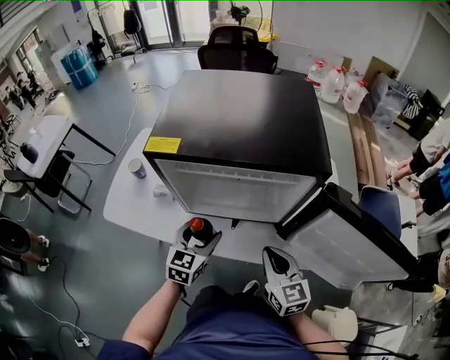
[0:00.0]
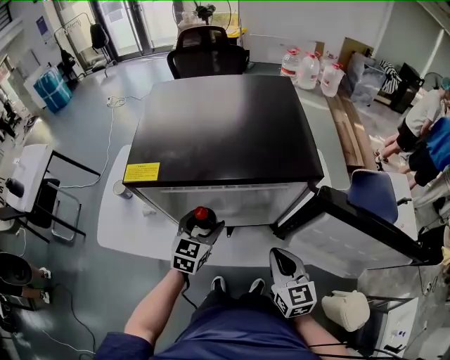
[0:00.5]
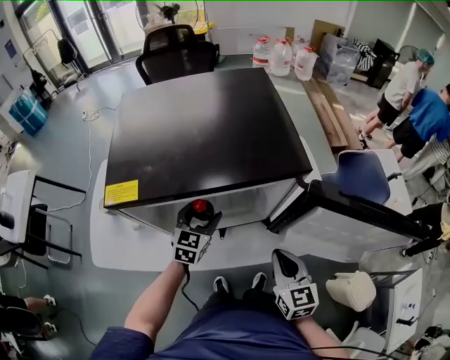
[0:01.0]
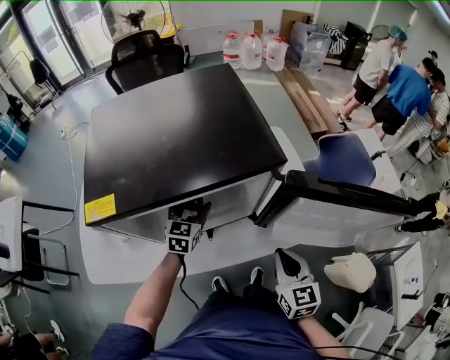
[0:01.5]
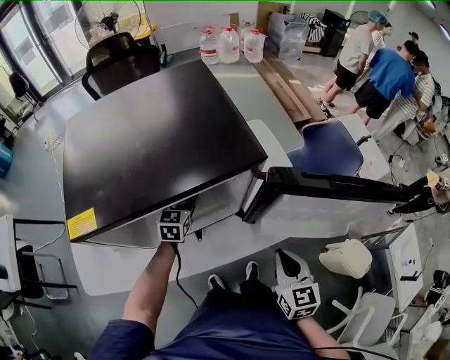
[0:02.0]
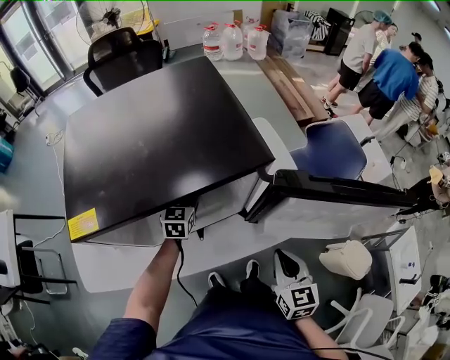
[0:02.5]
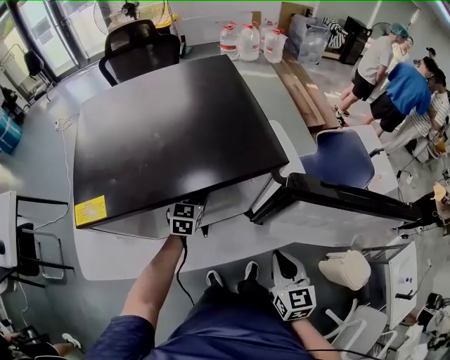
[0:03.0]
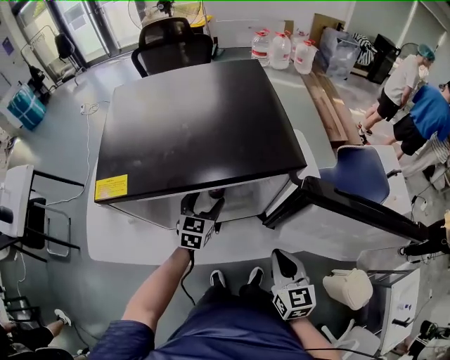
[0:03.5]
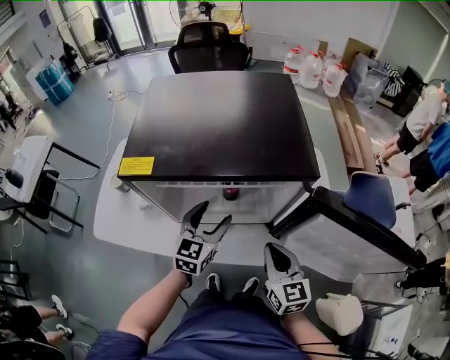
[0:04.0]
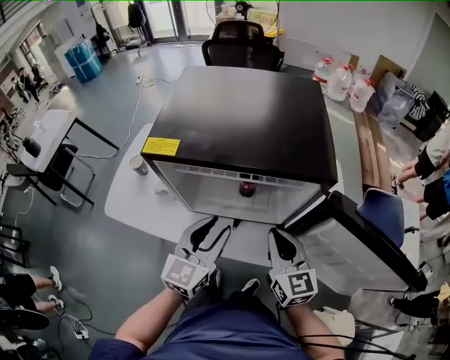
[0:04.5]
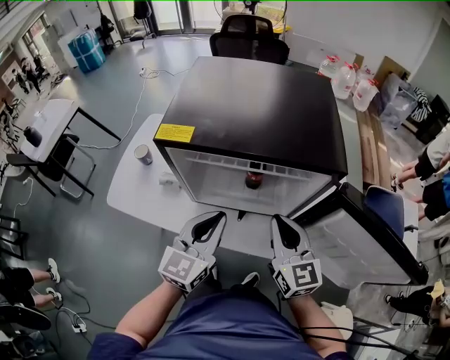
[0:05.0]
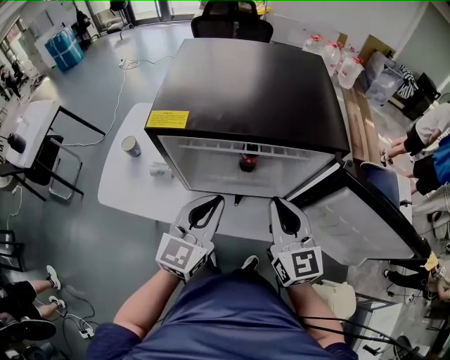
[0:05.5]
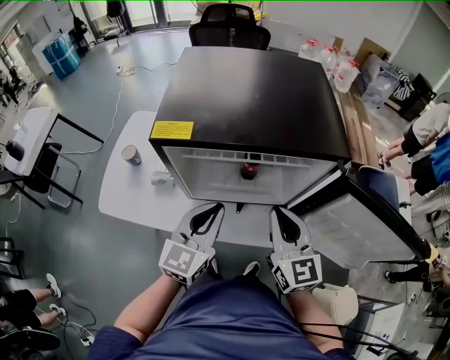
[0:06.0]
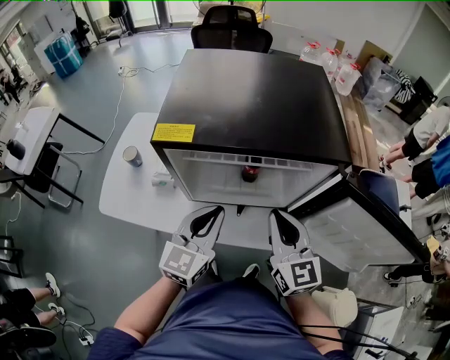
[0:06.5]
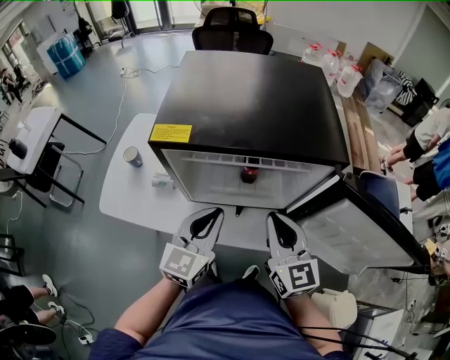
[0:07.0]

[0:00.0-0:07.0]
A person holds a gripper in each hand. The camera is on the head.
0:00.0 to 0:02.0: The left gripper ends up roughly 25 cm from where it was. Meanwhile the right gripper moves approximately 10 cm, and changes its angle by some 40 degrees.
0:02.0 to 0:03.5: The left gripper moves backward, some 5 cm. Meanwhile the right gripper changes place by roughly 5 cm.
0:03.5 to 0:05.0: The right gripper heads upward, to the left and forward, covering about 15 cm, and changes its angle by approximately 30 degrees; the left gripper heads upward and backward, covering roughly 25 cm, turns by roughly 20 degrees, and closes.
0:05.0 to 0:07.0: The grippers move only a little.

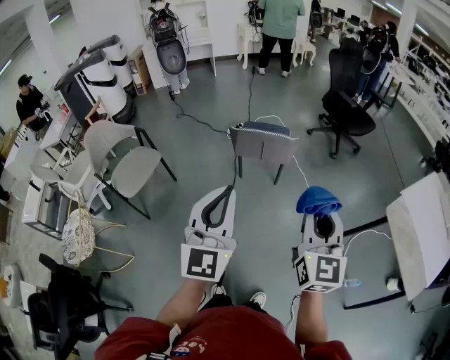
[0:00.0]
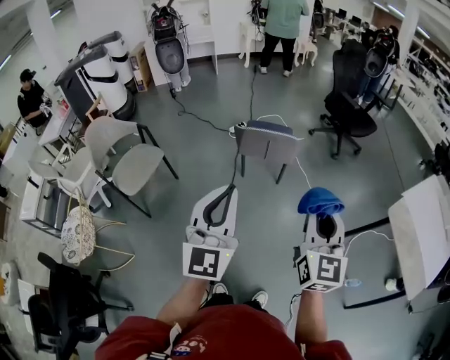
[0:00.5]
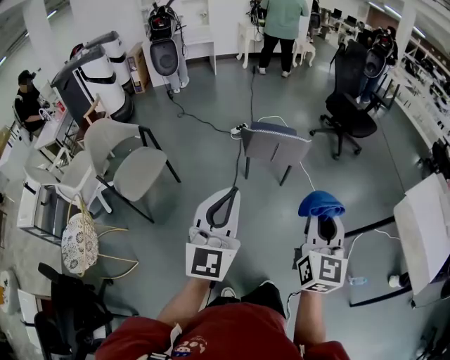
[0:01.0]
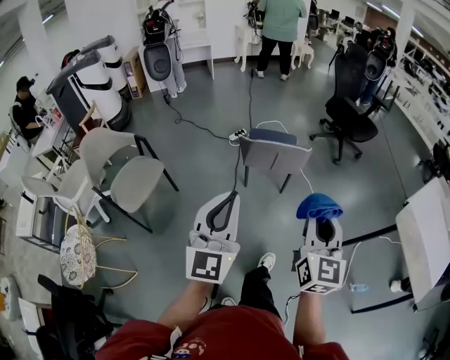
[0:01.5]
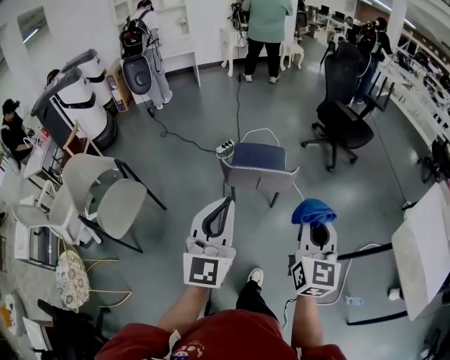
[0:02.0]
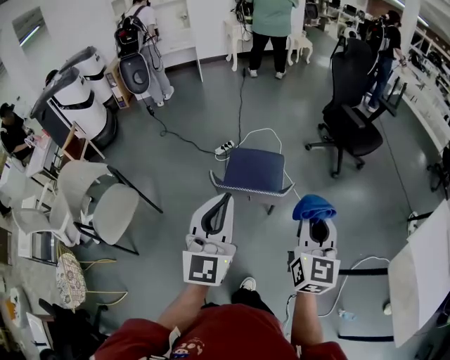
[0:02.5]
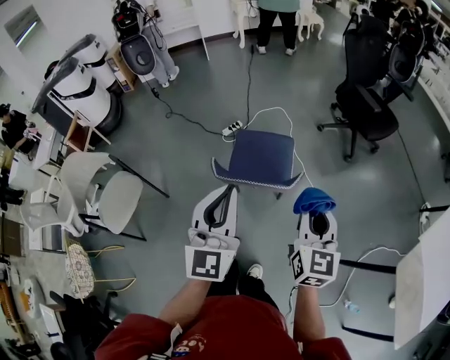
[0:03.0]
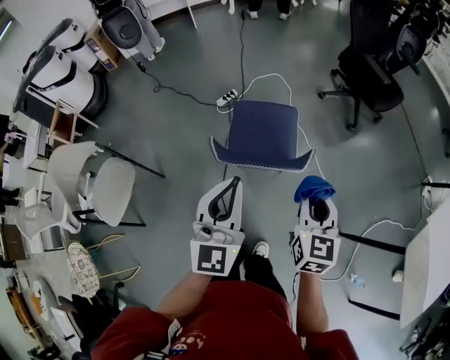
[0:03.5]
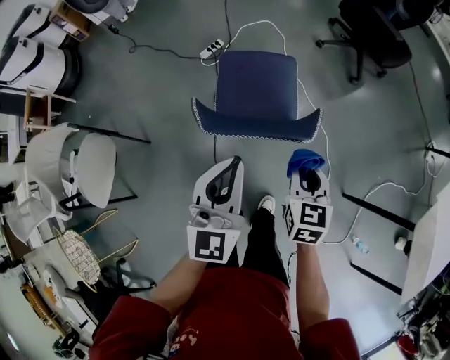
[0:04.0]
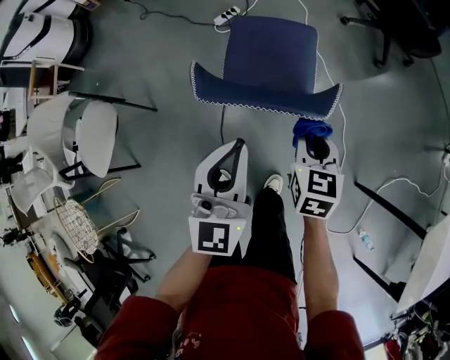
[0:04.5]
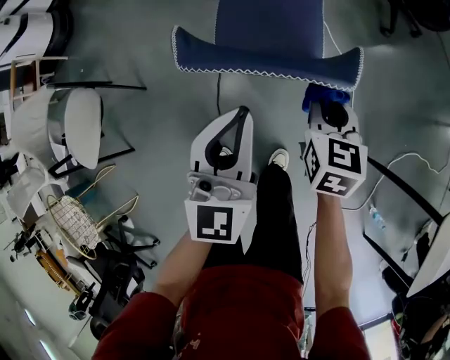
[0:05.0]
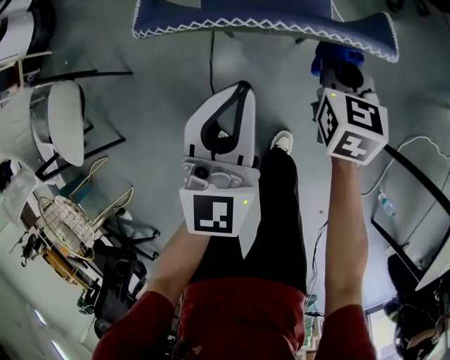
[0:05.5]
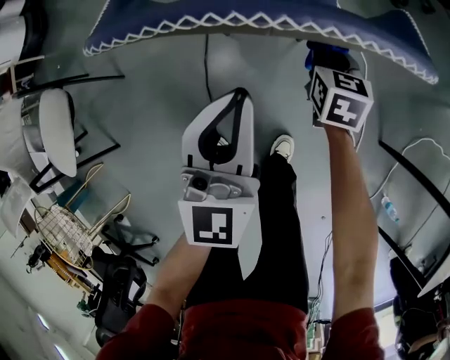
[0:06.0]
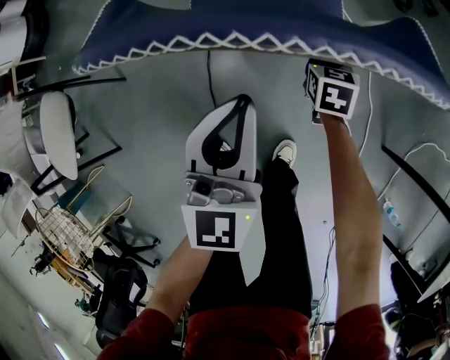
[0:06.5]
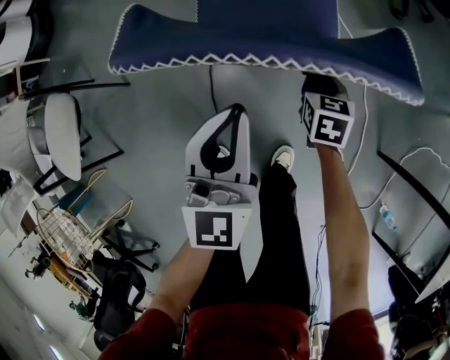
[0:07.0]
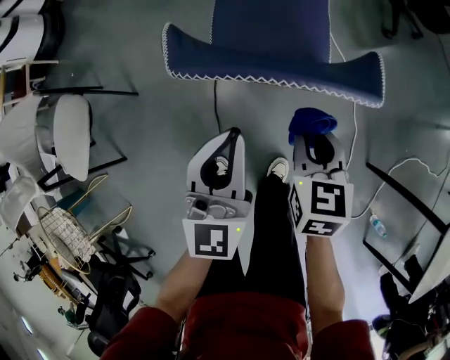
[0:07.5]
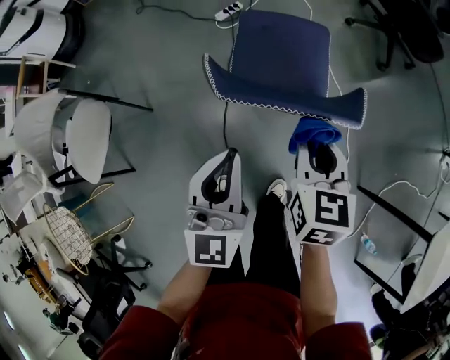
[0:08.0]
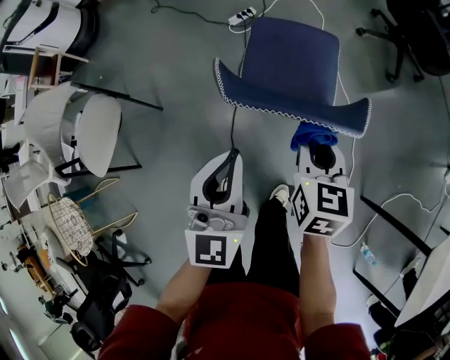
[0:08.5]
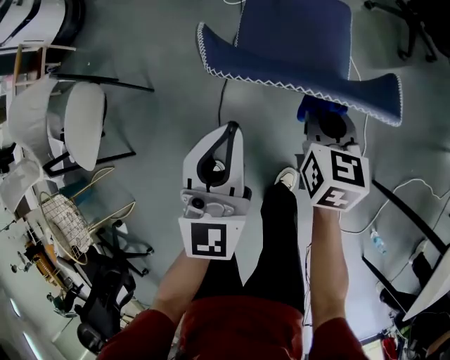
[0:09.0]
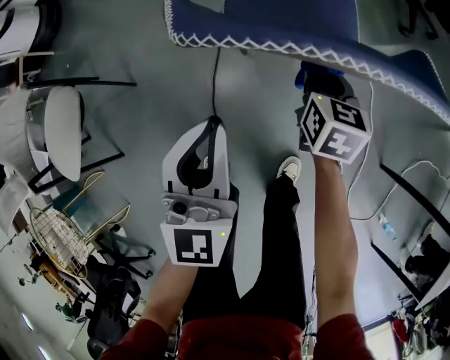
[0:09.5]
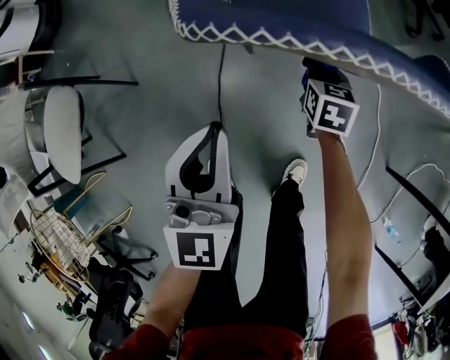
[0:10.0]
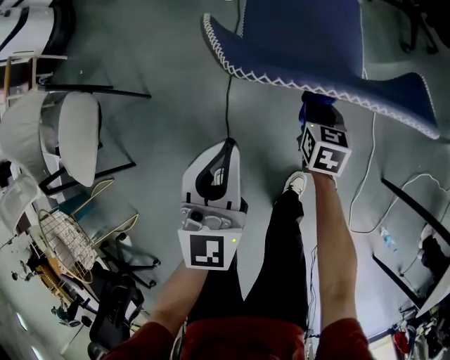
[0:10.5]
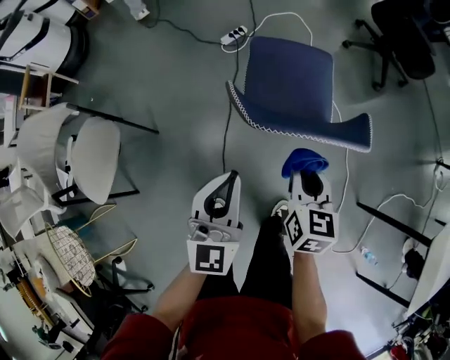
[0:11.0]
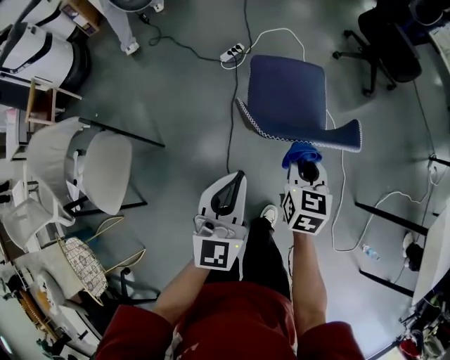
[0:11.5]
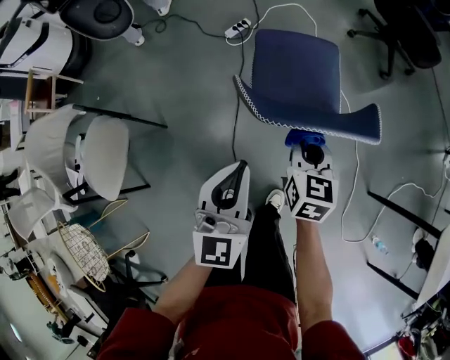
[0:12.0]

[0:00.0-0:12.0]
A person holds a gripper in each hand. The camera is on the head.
0:00.0 to 0:02.0: The grippers both shift forward by roughly 20 cm.
0:02.0 to 0:04.0: The left gripper heads forward and downward, covering approximately 30 cm. The right gripper travels downward and forward by about 40 cm, and tilts its fingers roughly 30 degrees downward.
0:04.0 to 0:06.0: The grippers both shift downward by some 30 cm.
0:06.0 to 0:08.0: The right gripper moves upward, approximately 30 cm. Meanwhile the left gripper moves upward and to the left, about 15 cm.
0:08.0 to 0:10.0: The right gripper goes about 35 cm downward; the left gripper moves downward, approximately 15 cm.
0:10.0 to 0:12.0: The left gripper is displaced upward by about 15 cm, while the right gripper heads upward, covering roughly 30 cm.

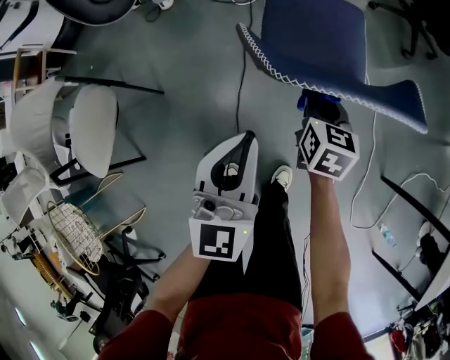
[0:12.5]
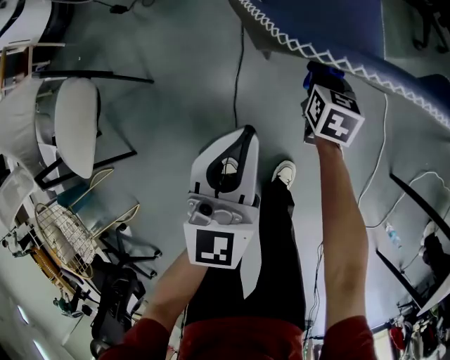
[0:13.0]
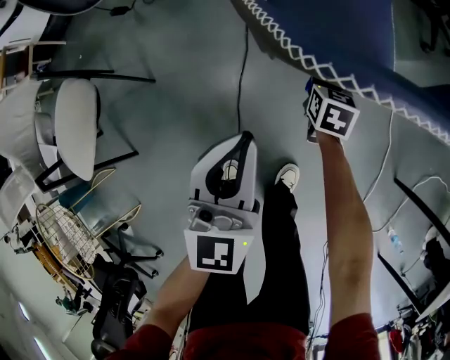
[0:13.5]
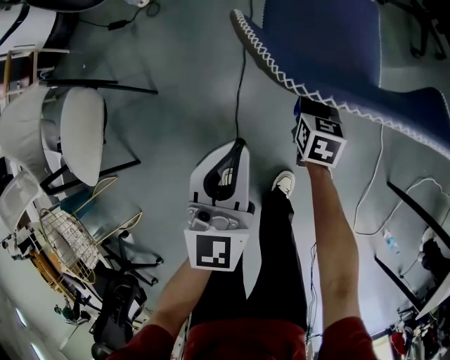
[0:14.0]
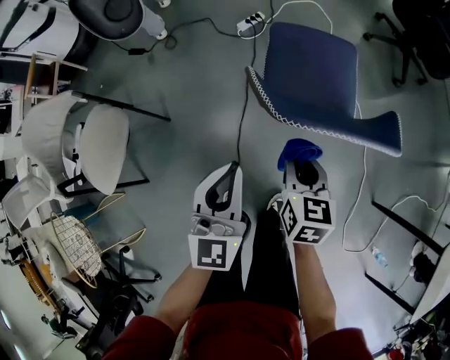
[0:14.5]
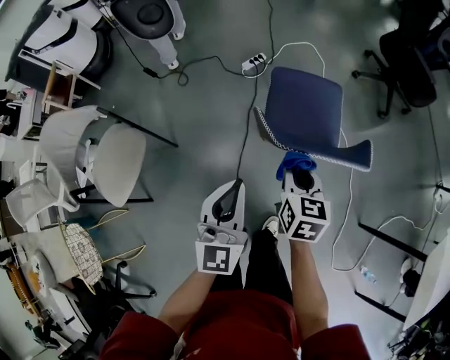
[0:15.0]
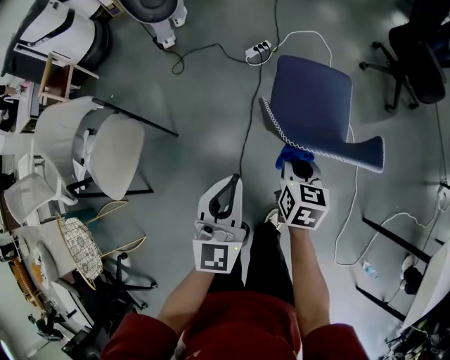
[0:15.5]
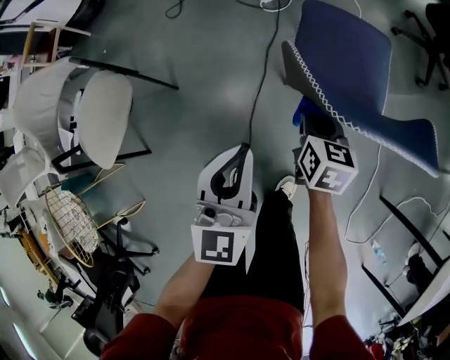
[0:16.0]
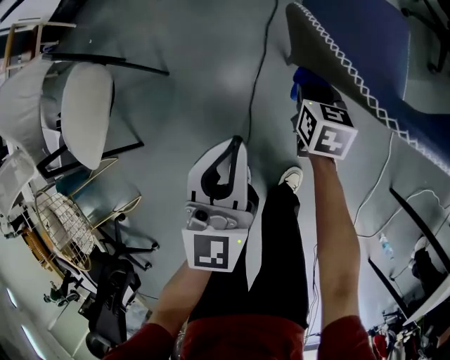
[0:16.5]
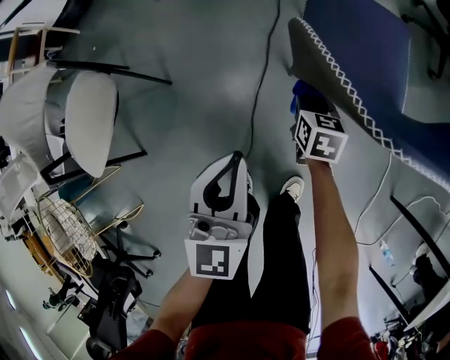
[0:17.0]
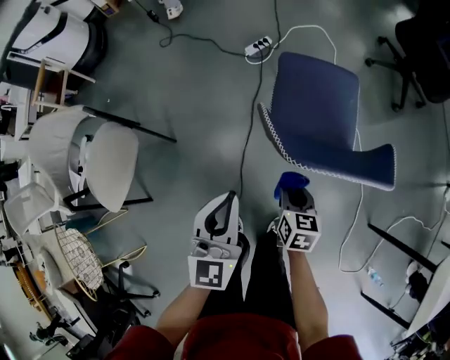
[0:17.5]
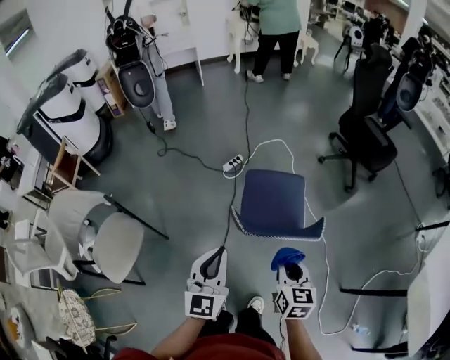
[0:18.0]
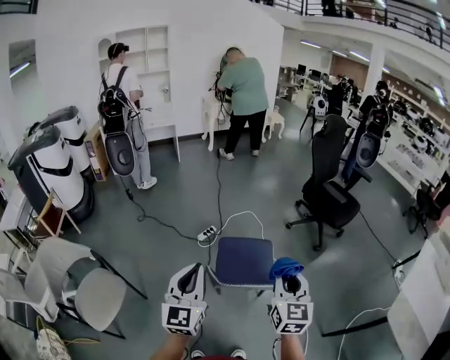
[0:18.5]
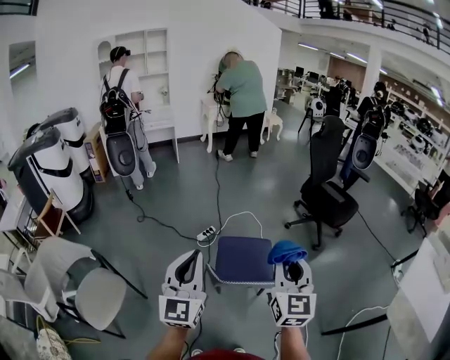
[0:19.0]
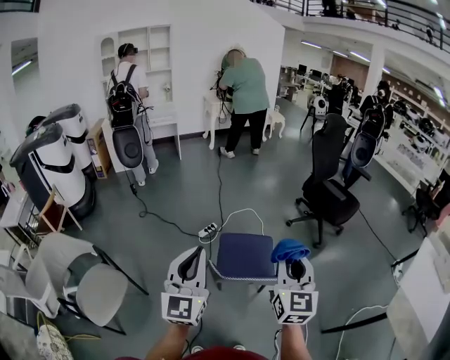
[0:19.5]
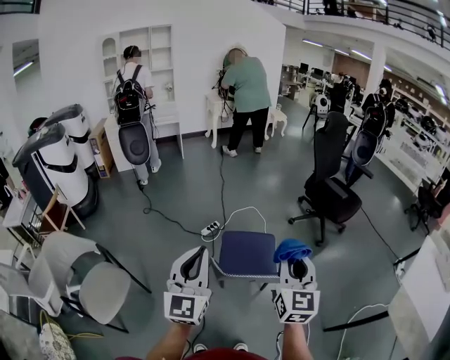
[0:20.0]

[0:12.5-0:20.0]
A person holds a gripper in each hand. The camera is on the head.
0:12.5 to 0:14.5: The left gripper goes downward and returns, roughly 10 cm each way; the right gripper is displaced backward by roughly 10 cm, and moves about 20 cm downward and comes back.
0:14.5 to 0:16.5: The left gripper is displaced downward and to the left by about 10 cm. Meanwhile the right gripper travels downward and forward by approximately 25 cm.
0:16.5 to 0:18.0: Both grippers move upward, about 30 cm.
0:18.0 to 0:20.0: The two grippers go about 25 cm upward. The right gripper rotates roughly 30 degrees, while the left gripper rotates some 20 degrees.
